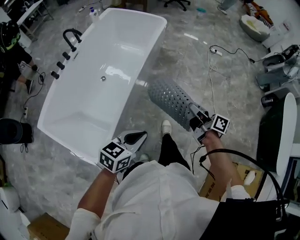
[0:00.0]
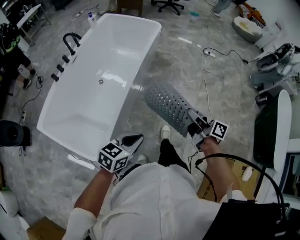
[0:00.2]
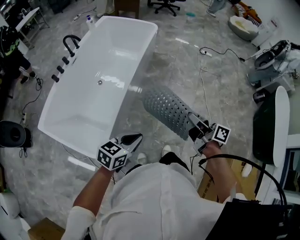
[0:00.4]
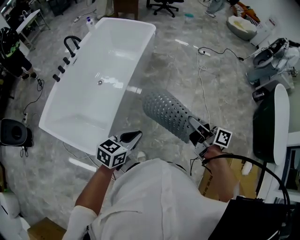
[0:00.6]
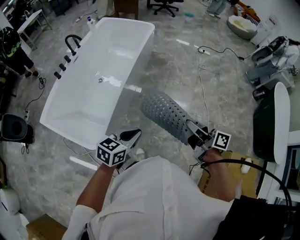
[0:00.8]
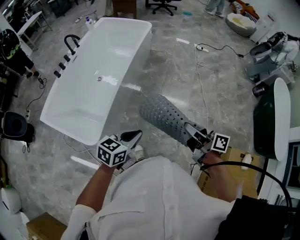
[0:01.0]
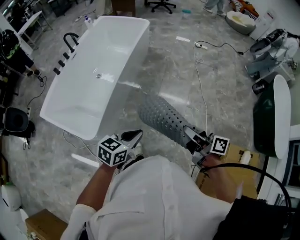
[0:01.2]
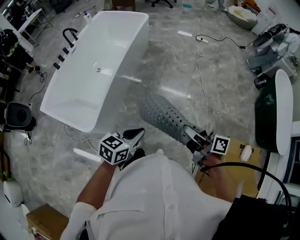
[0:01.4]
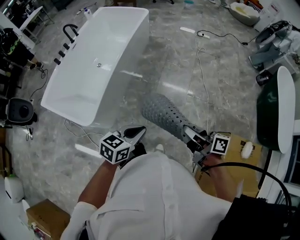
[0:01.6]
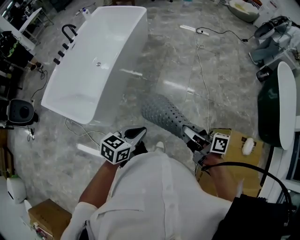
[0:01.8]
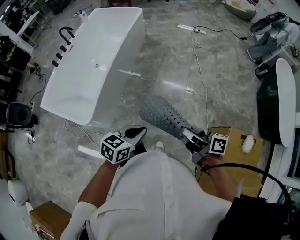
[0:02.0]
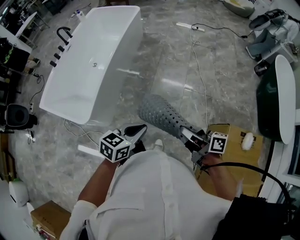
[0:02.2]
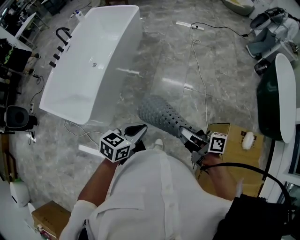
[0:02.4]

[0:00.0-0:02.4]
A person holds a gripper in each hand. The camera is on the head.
0:00.0 to 0:01.2: The left gripper travels backward and to the right by about 20 cm; the right gripper travels backward by roughly 30 cm.
0:01.2 to 0:02.4: The left gripper travels to the right and backward by roughly 15 cm; the right gripper travels backward and to the right by some 15 cm.

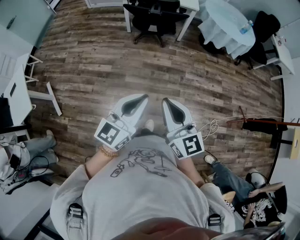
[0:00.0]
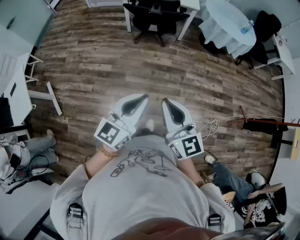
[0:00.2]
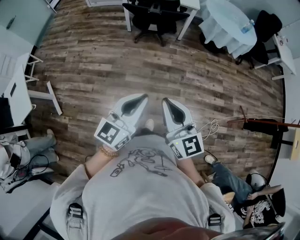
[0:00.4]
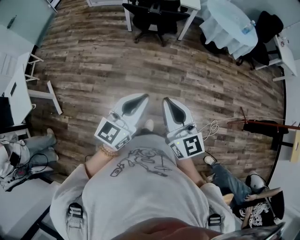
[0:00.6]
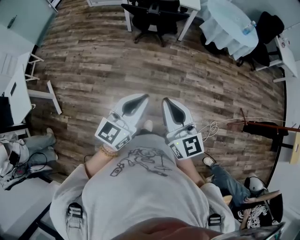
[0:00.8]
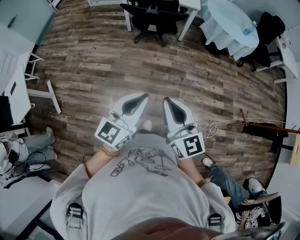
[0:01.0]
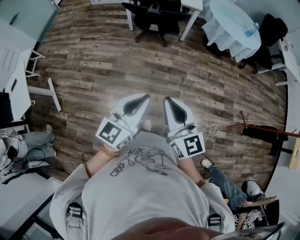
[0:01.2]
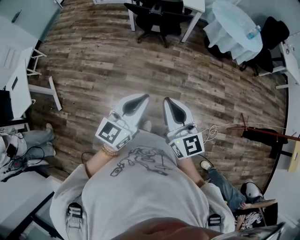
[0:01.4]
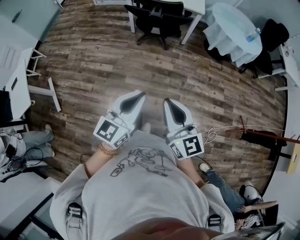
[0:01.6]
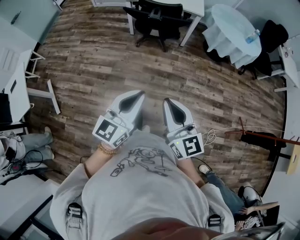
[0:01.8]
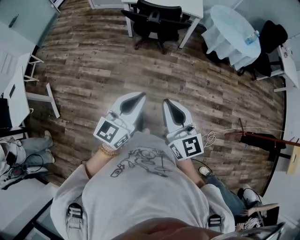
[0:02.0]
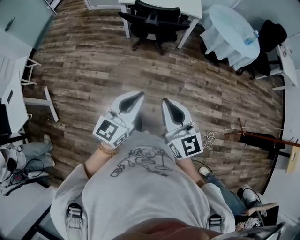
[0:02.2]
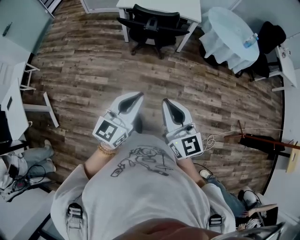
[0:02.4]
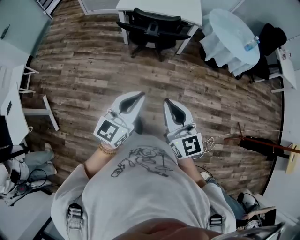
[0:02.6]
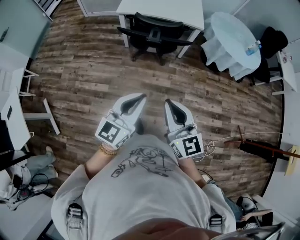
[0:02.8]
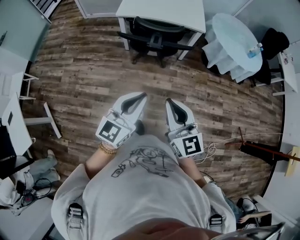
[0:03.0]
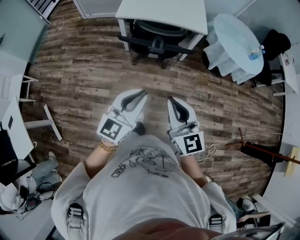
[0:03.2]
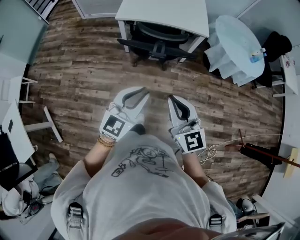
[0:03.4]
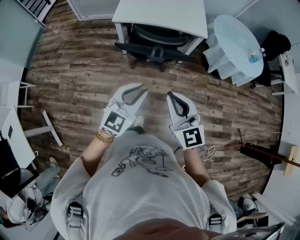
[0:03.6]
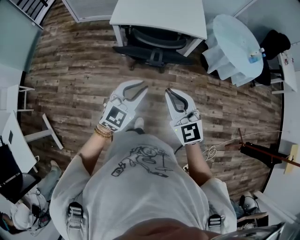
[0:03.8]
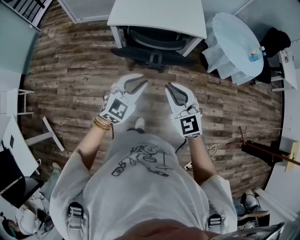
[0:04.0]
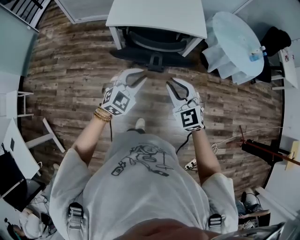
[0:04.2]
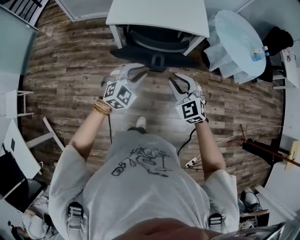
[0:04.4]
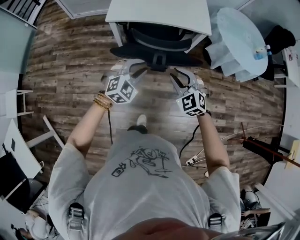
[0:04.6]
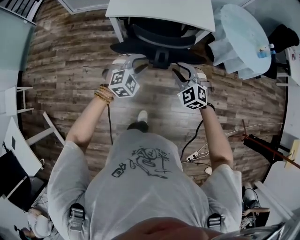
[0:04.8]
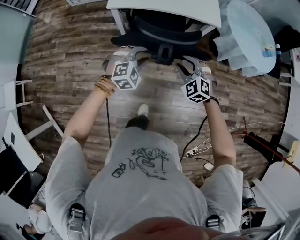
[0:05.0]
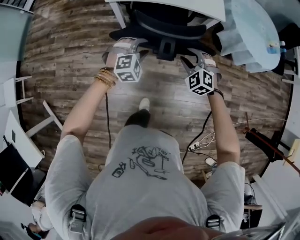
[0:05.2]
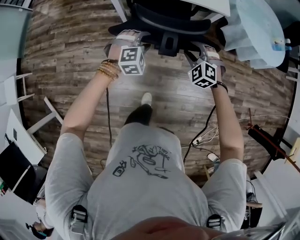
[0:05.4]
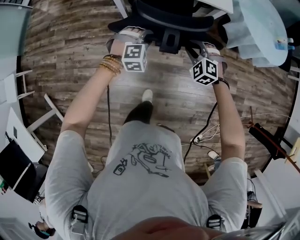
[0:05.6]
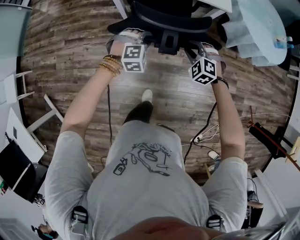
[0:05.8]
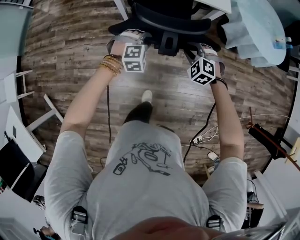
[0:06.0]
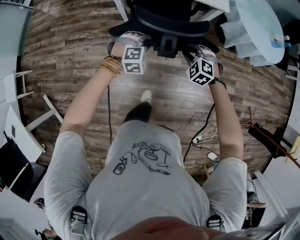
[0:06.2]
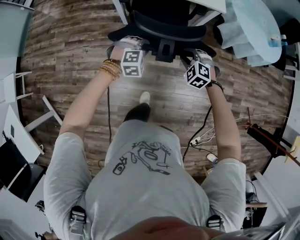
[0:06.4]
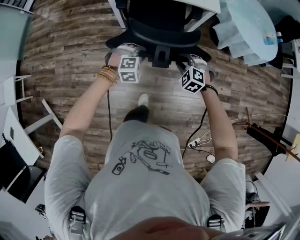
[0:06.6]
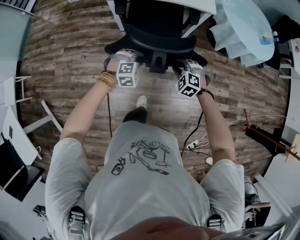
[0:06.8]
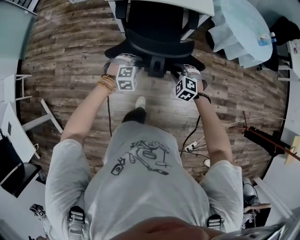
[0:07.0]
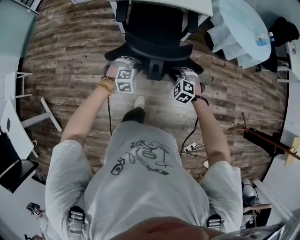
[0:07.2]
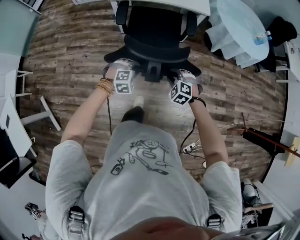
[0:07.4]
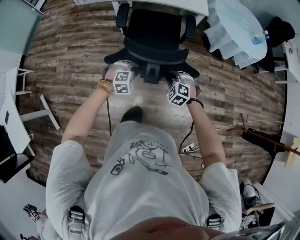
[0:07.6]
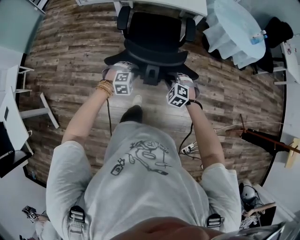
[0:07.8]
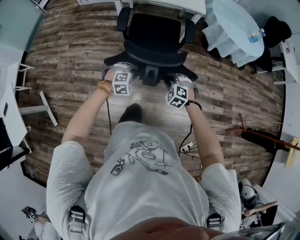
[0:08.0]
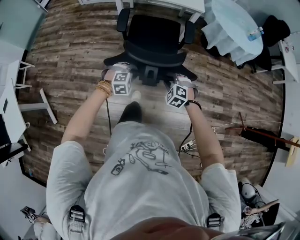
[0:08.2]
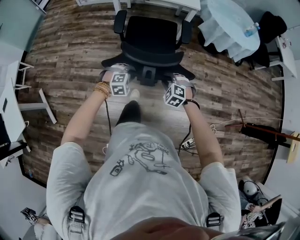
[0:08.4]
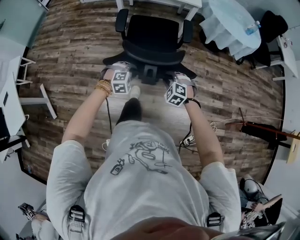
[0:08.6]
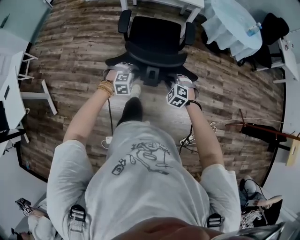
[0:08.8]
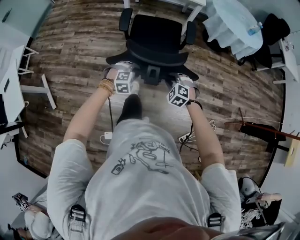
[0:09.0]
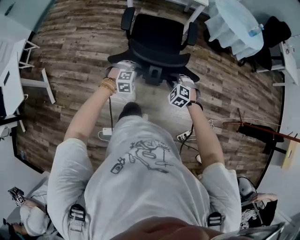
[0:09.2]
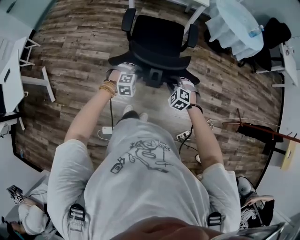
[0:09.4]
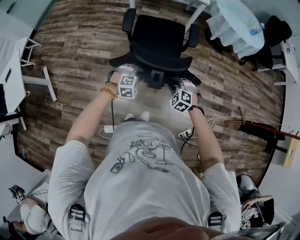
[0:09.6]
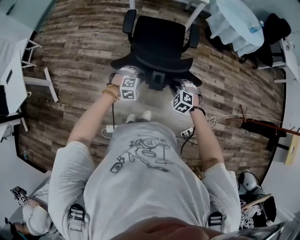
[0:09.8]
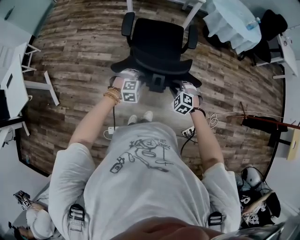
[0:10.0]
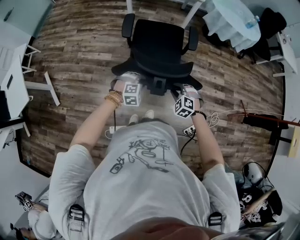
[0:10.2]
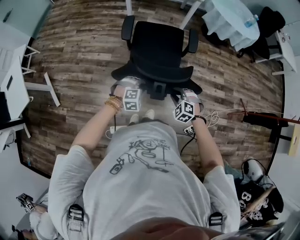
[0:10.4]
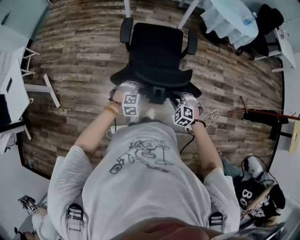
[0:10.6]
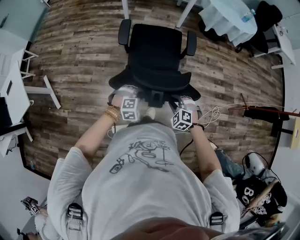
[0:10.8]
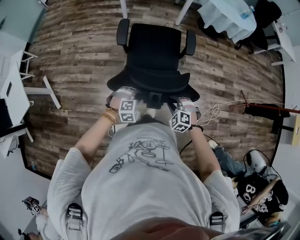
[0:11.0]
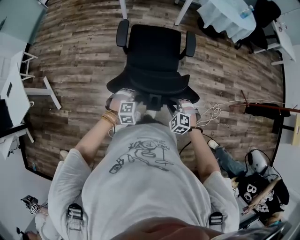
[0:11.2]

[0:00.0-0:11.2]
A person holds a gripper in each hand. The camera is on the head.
0:00.0 to 0:01.6: The right gripper travels forward and to the right by about 10 cm; the left gripper heads forward, covering about 5 cm.
0:01.6 to 0:03.2: Both grippers travel together forward, some 35 cm.
0:03.2 to 0:04.8: Both grippers move forward and downward, approximately 40 cm. The left gripper tips its fingers downward by about 30 degrees, and opens; the right gripper angles its fingers downward, by some 30 degrees, and opens up.
0:04.8 to 0:06.4: Both grippers move downward, roughly 15 cm. The left gripper turns by roughly 20 degrees.
0:06.4 to 0:08.0: The grippers both shift backward by approximately 30 cm.
0:08.0 to 0:09.6: Both grippers move backward, roughly 25 cm.
0:09.6 to 0:11.2: The grippers both shift backward by roughly 20 cm.

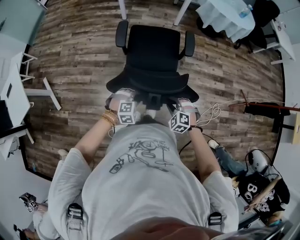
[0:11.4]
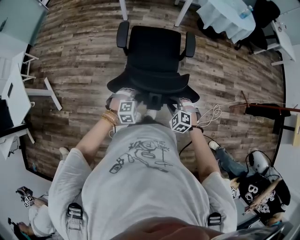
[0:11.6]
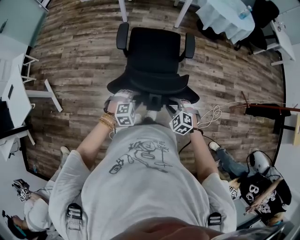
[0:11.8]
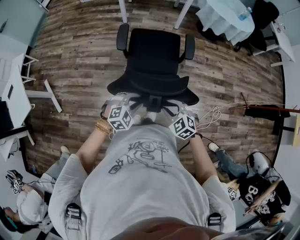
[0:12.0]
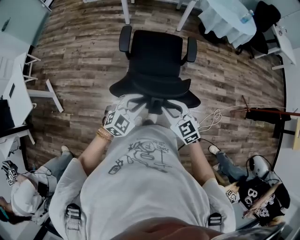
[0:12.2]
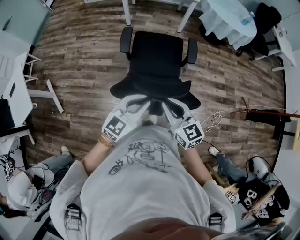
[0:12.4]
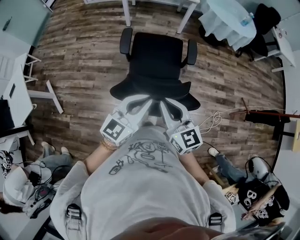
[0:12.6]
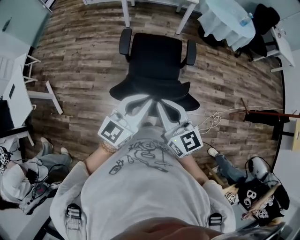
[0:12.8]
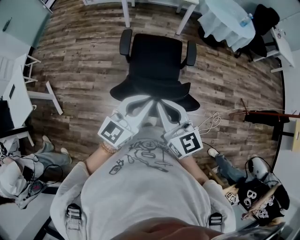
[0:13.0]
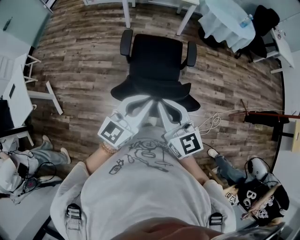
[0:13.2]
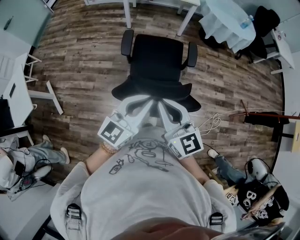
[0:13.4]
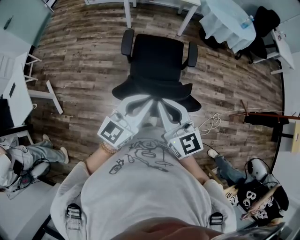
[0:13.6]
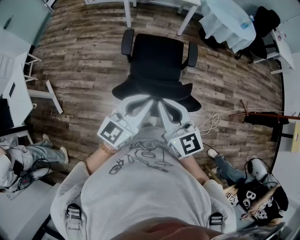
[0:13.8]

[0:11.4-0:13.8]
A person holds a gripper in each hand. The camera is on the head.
0:11.4 to 0:12.6: Both grippers move upward, roughly 30 cm. The right gripper tilts its fingers roughly 50 degrees upward; the left gripper points its fingers about 60 degrees further upward, and closes.
0:12.6 to 0:13.8: The right gripper shifts by about 5 cm.

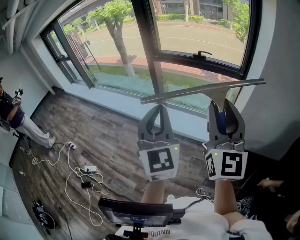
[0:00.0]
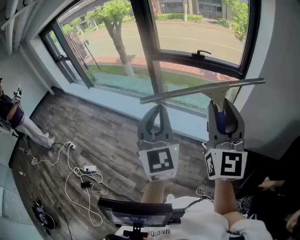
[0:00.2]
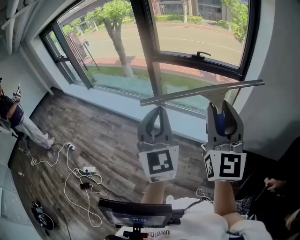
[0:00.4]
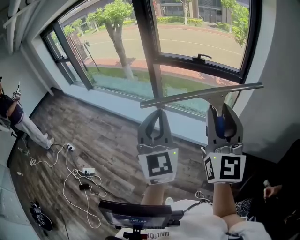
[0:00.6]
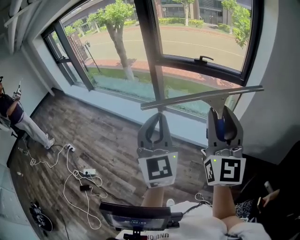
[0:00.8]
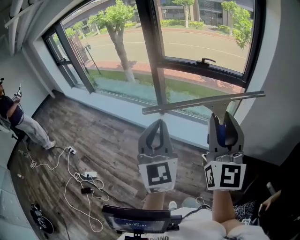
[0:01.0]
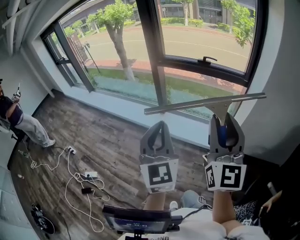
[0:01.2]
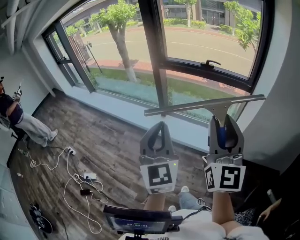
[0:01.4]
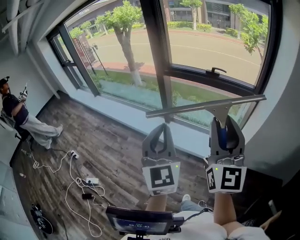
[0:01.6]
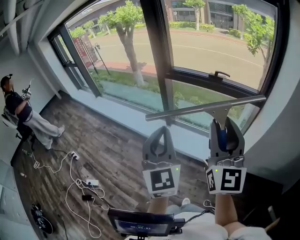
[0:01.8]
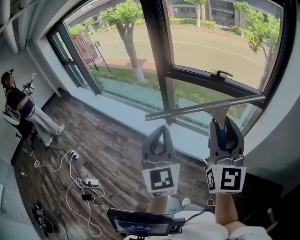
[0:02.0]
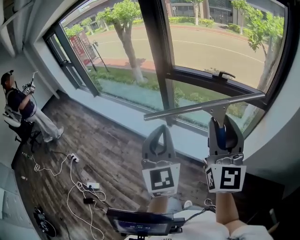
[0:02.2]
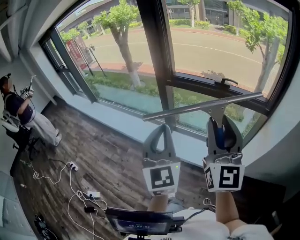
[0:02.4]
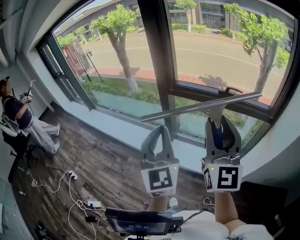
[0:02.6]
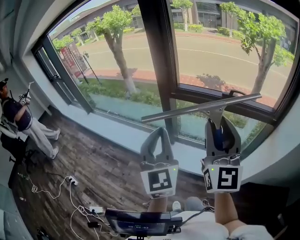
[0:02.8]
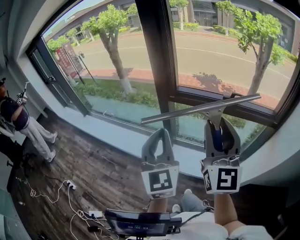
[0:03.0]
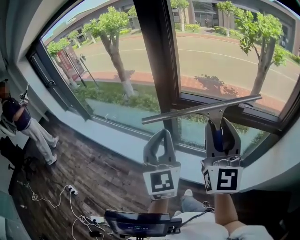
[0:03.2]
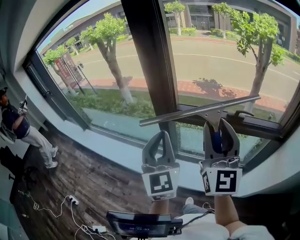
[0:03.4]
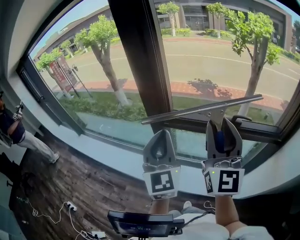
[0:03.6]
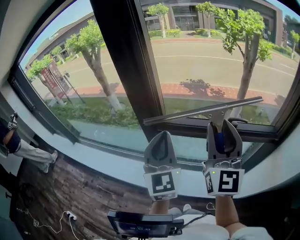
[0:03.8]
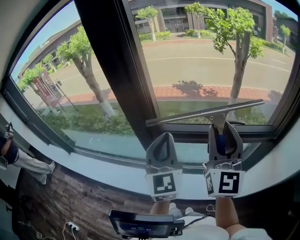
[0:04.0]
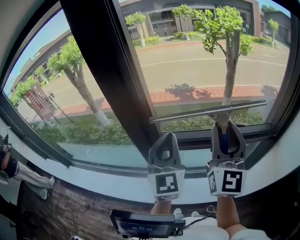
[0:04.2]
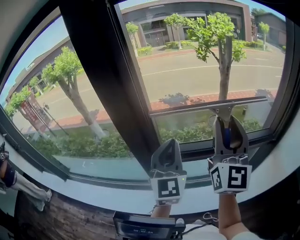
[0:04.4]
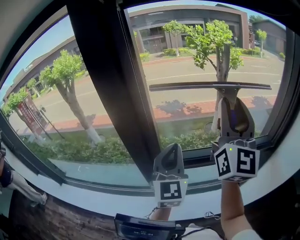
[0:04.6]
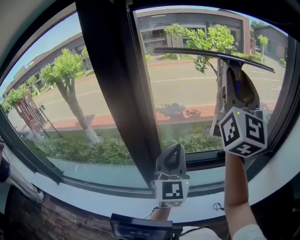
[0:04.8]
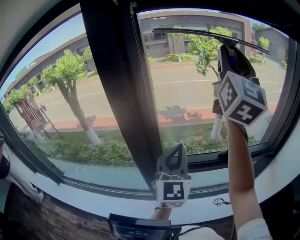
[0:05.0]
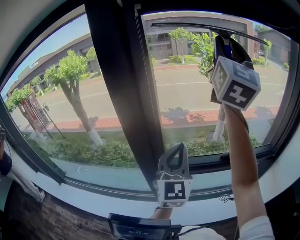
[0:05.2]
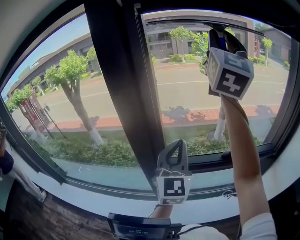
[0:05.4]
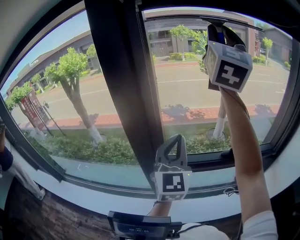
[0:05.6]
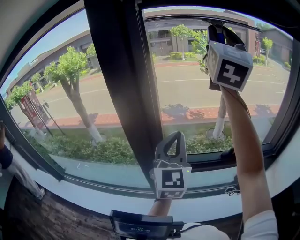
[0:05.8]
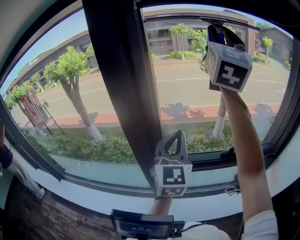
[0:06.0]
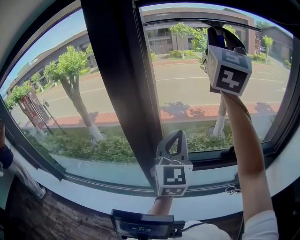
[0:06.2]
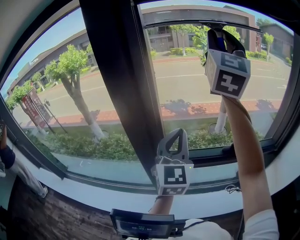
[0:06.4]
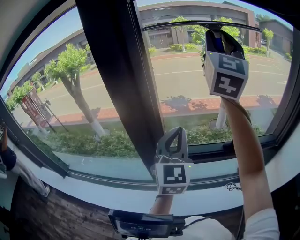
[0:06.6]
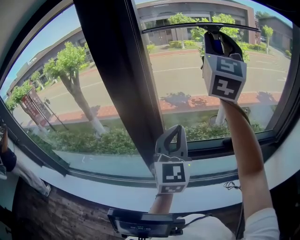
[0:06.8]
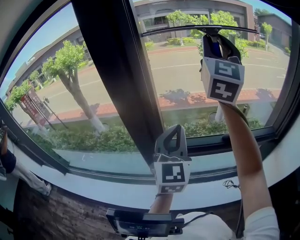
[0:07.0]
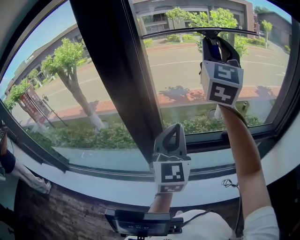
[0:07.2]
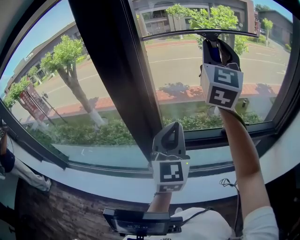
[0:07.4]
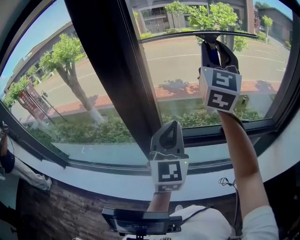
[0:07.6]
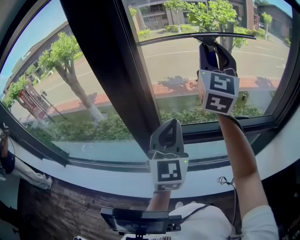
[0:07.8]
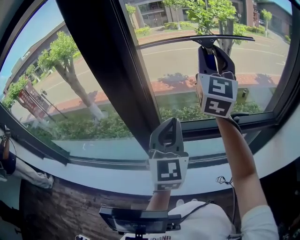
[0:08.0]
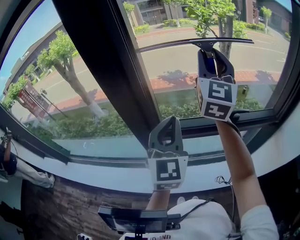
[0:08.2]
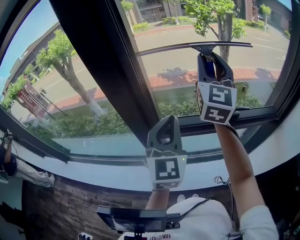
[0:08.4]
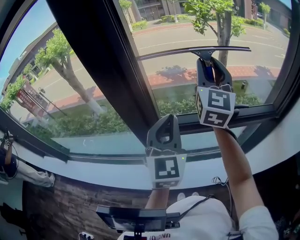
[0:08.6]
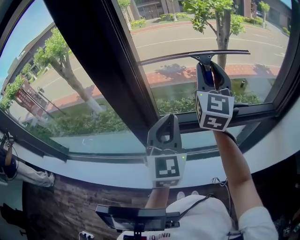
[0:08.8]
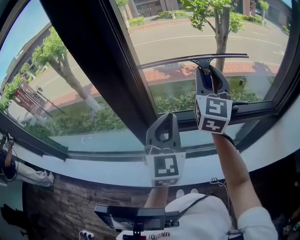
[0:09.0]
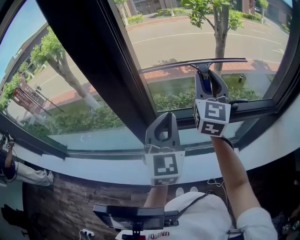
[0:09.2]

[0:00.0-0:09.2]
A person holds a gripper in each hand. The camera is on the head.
0:00.0 to 0:01.6: Both grippers travel together forward, roughly 10 cm.
0:01.6 to 0:03.0: Both grippers move forward, approximately 30 cm.
0:03.0 to 0:04.6: The left gripper shifts by about 35 cm, and changes its angle by approximately 30 degrees, while the right gripper changes place by roughly 35 cm, and swivels roughly 30 degrees.
0:04.6 to 0:06.2: The right gripper heads upward and forward, covering some 20 cm.
0:06.2 to 0:07.6: The right gripper moves downward, roughly 15 cm.
0:07.6 to 0:09.2: The right gripper is displaced downward by about 20 cm.
